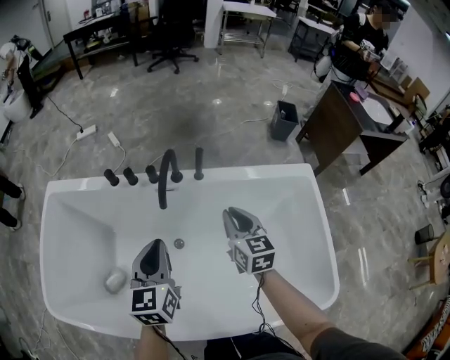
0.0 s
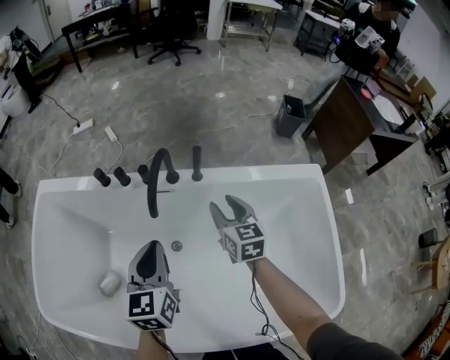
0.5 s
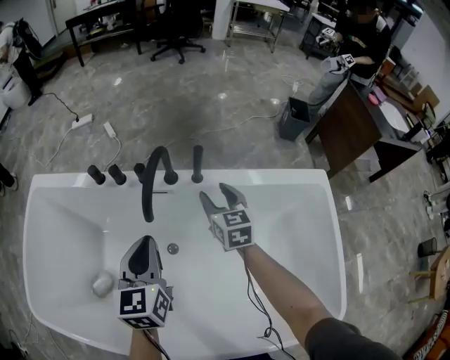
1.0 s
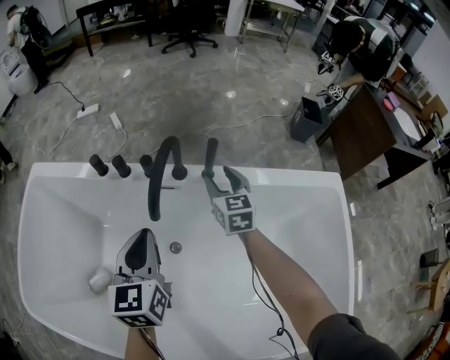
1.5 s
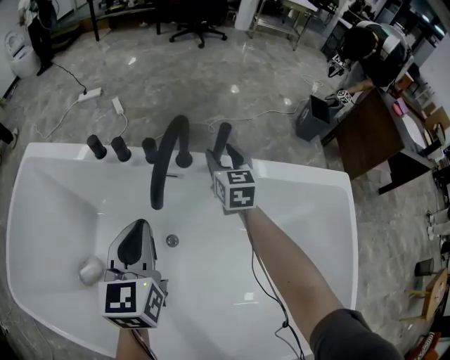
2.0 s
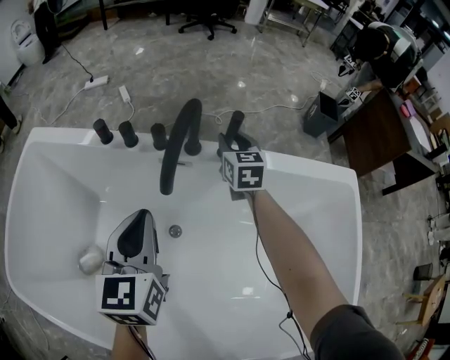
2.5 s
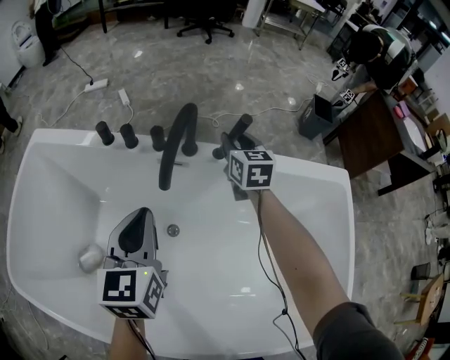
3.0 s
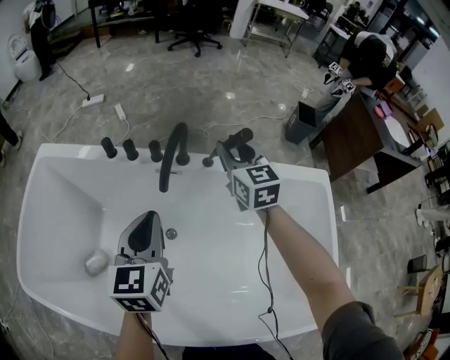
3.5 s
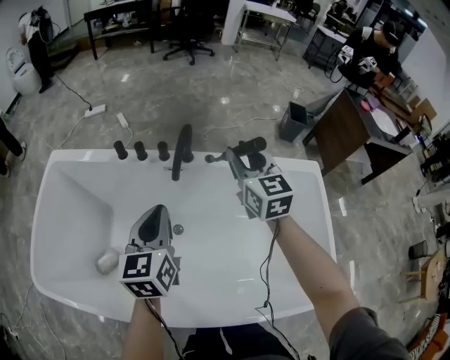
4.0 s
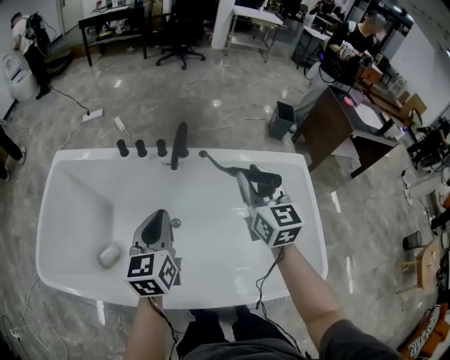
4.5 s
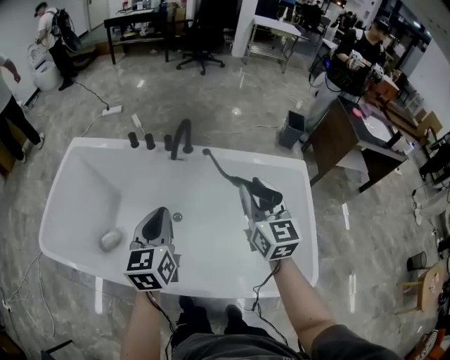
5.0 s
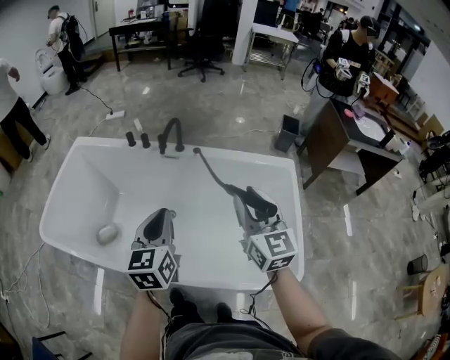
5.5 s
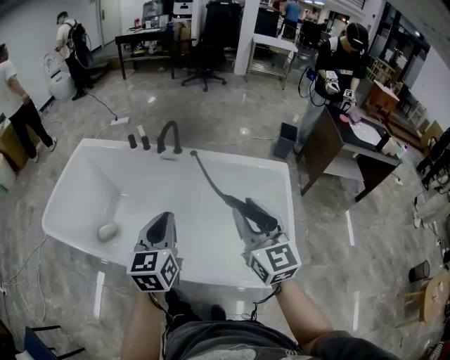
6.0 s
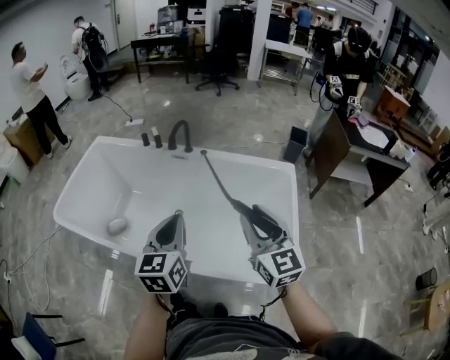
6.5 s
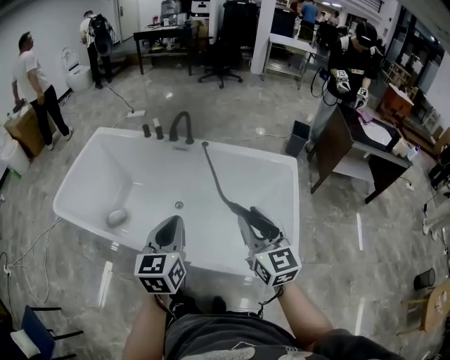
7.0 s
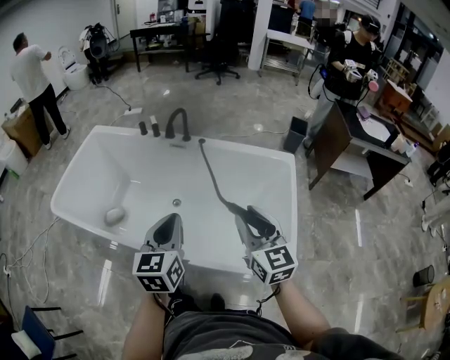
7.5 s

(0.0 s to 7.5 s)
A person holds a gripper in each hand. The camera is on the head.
0.0 s - 2.0 s: The right gripper goes some 30 cm forward and downward, and opens its fingers; the left gripper is displaced downward and forward by about 15 cm.
2.0 s - 4.0 s: The left gripper heads upward and backward, covering approximately 15 cm. The right gripper goes approximately 30 cm upward and backward, and closes its fingers.
4.0 s - 5.5 s: The right gripper shifts about 30 cm backward. The left gripper moves backward, to the right and upward, some 25 cm.
5.5 s - 7.5 s: The left gripper travels backward and to the right by approximately 15 cm, while the right gripper moves backward, some 15 cm.

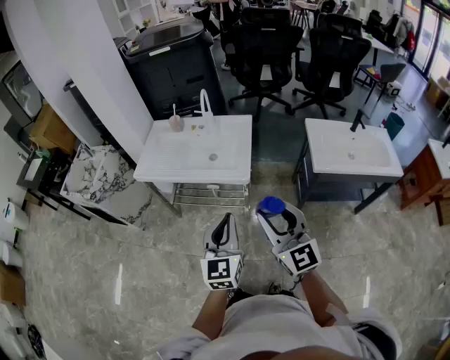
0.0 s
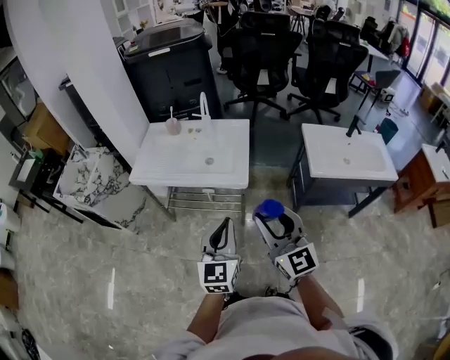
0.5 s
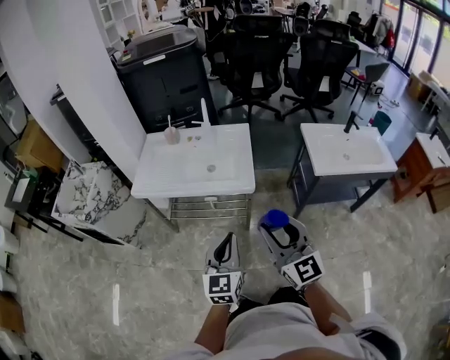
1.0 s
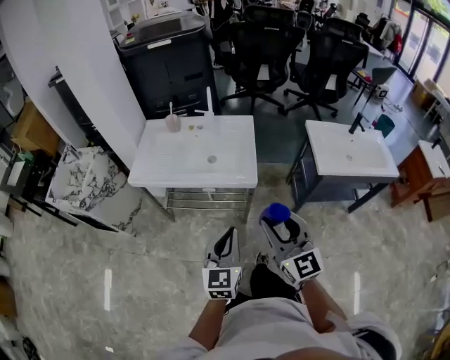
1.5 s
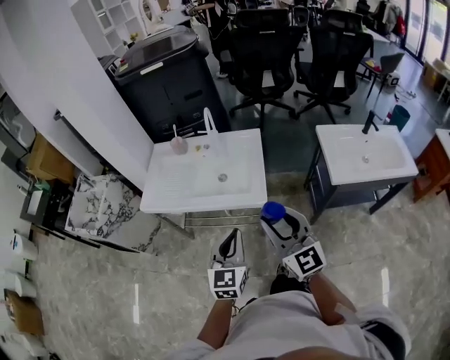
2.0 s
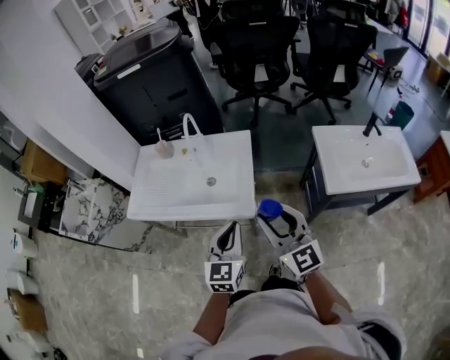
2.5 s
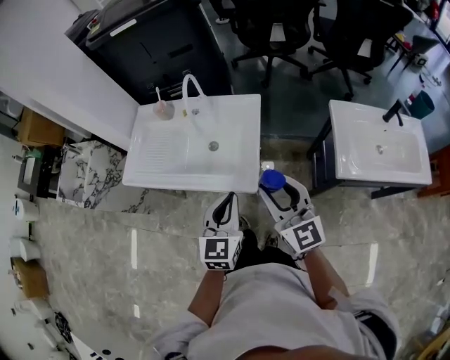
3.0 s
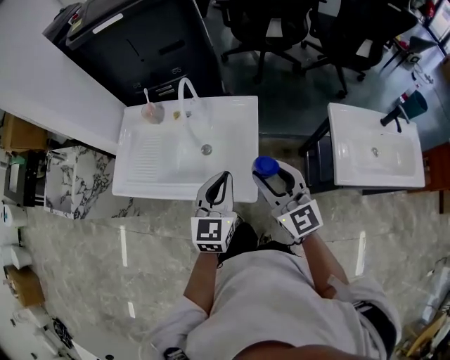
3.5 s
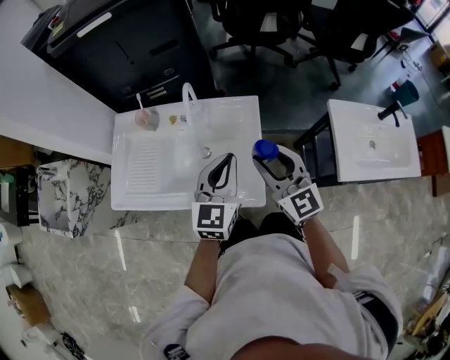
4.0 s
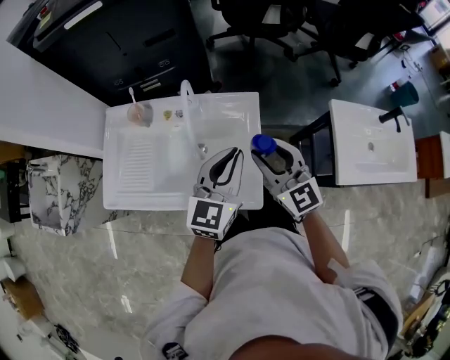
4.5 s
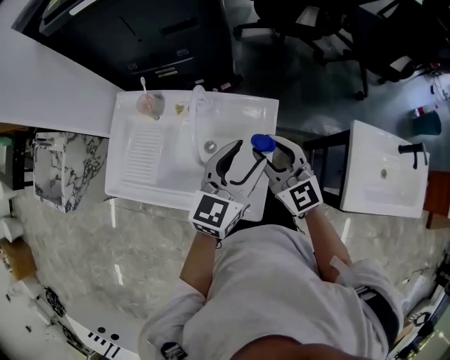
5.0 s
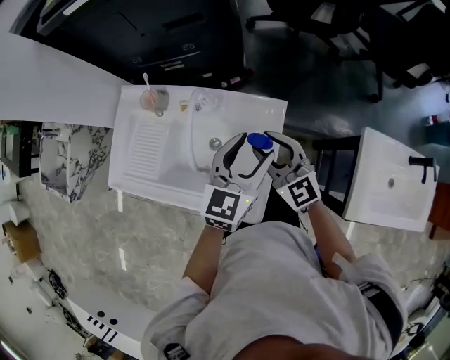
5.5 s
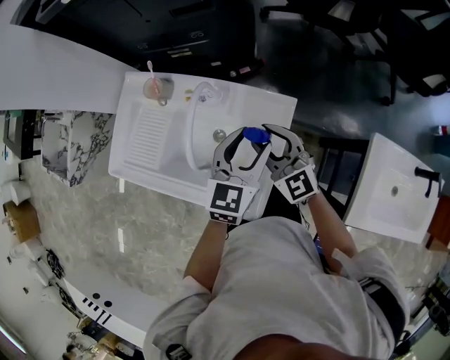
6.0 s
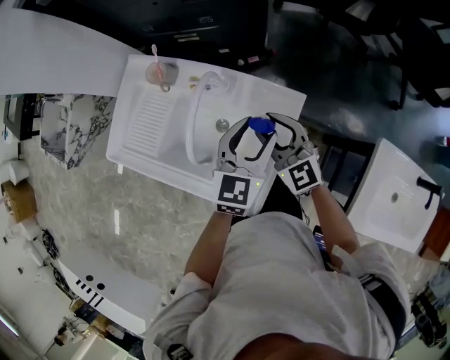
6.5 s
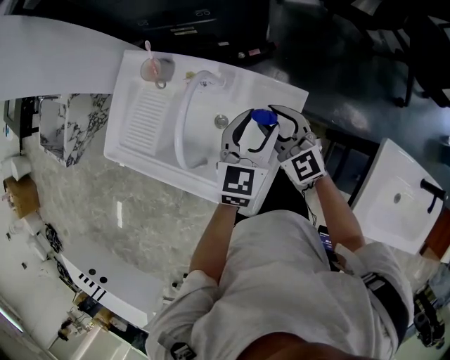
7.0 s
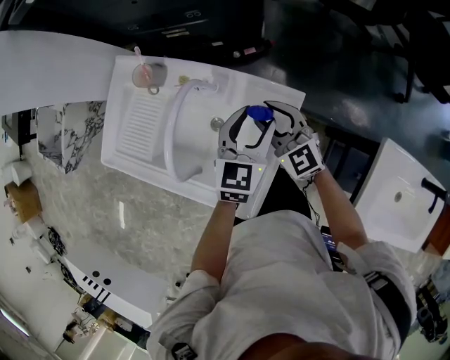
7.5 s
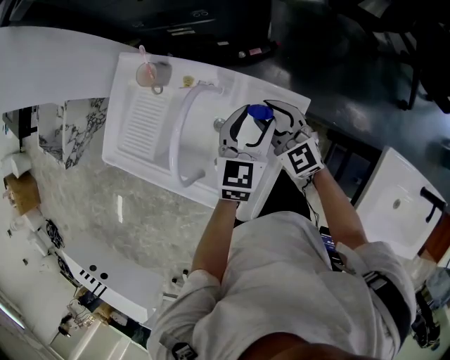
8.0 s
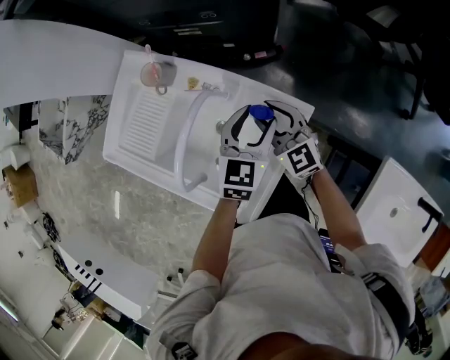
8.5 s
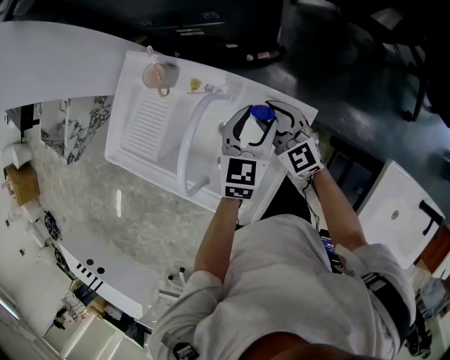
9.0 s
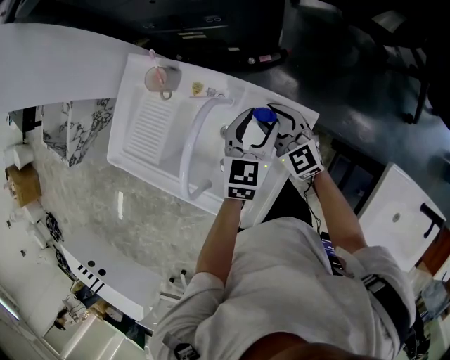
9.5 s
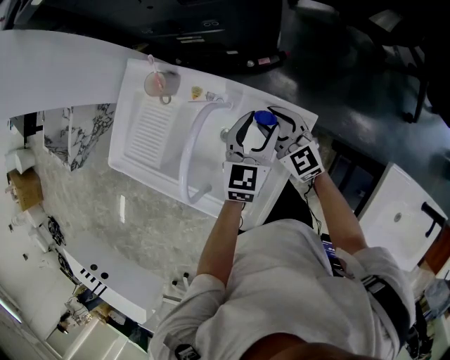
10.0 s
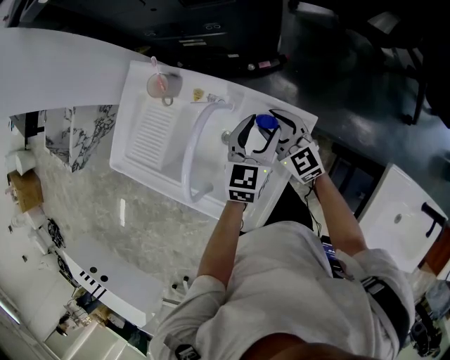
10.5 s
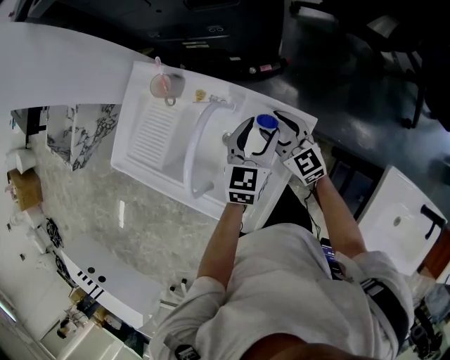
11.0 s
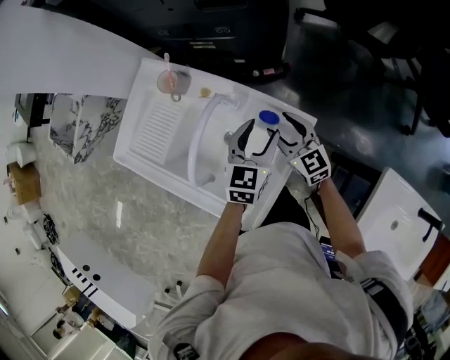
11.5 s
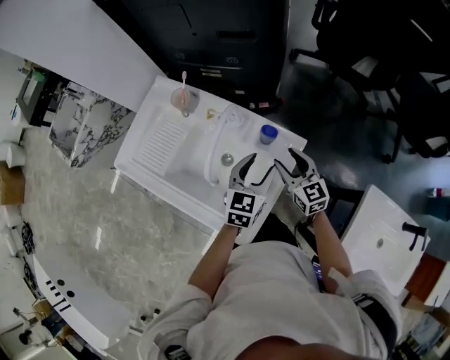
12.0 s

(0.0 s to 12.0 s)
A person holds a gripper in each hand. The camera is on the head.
0.0 s - 2.0 s: The right gripper goes some 15 cm forward and to the left, while the left gripper heads forward, downward and to the left, covering about 15 cm.
2.0 s - 4.0 s: Both grippers travel together forward, some 35 cm.
4.0 s - 6.0 s: The two grippers go roughly 20 cm forward and downward. The left gripper opens up. Meanwhile the right gripper swivels roughly 30 degrees.
6.0 s - 8.0 s: Both grippers travel together downward and forward, approximately 10 cm.
8.0 s - 10.0 s: The grippers make only small movements.
10.0 s - 12.0 s: Both grippers move backward, approximately 10 cm.

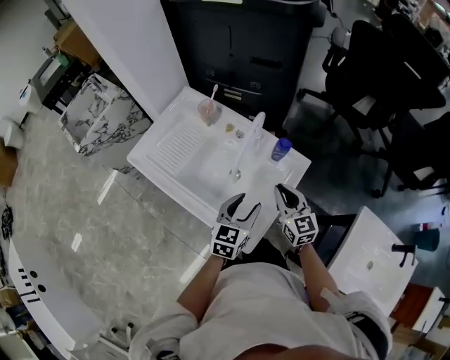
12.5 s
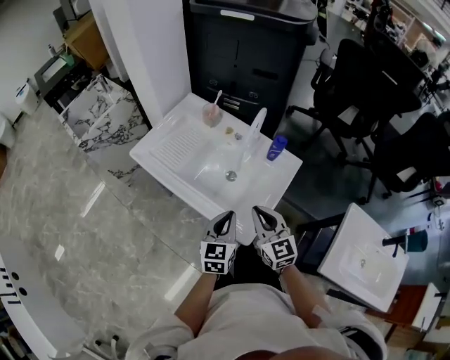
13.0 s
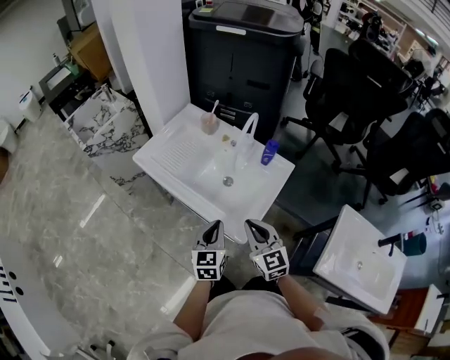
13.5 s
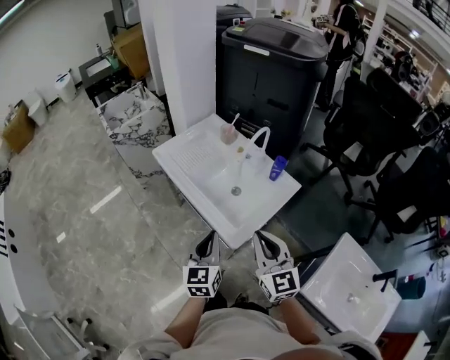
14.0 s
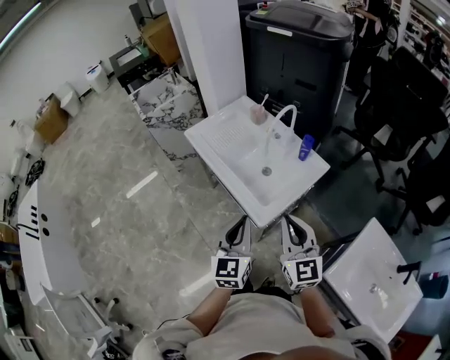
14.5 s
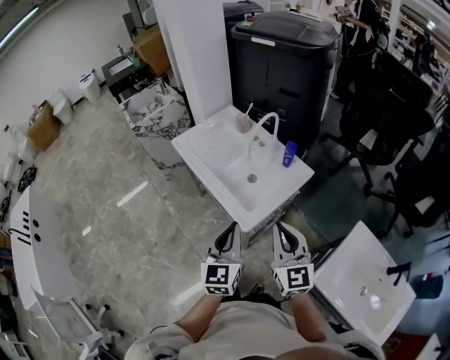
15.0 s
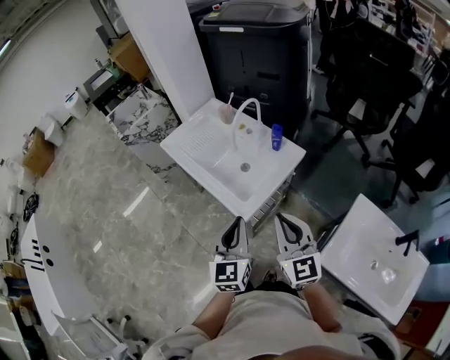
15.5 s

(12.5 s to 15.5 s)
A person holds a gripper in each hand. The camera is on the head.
12.5 s - 14.0 s: The right gripper travels backward and upward by roughly 30 cm. Meanwhile the left gripper heads backward, to the left and upward, covering roughly 25 cm, rotates about 30 degrees, and closes.
14.0 s - 15.5 s: The left gripper goes roughly 15 cm to the right, backward and upward, while the right gripper heads to the right and backward, covering roughly 10 cm.

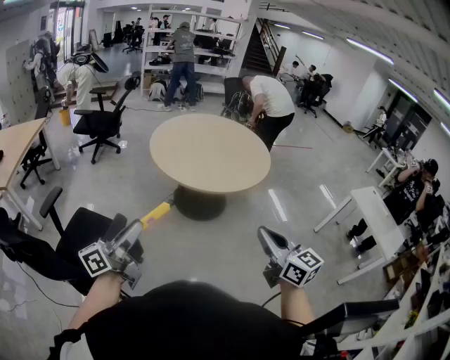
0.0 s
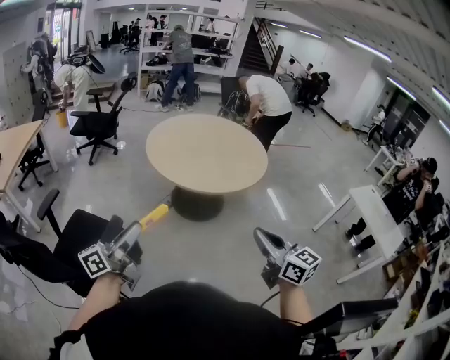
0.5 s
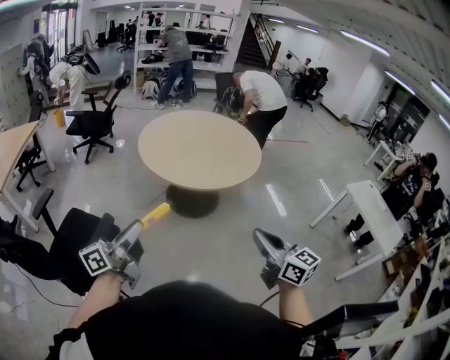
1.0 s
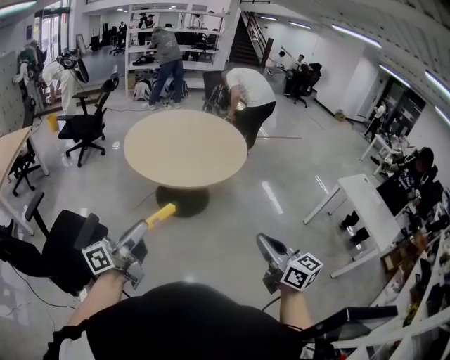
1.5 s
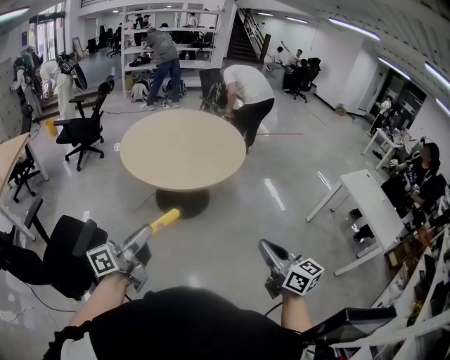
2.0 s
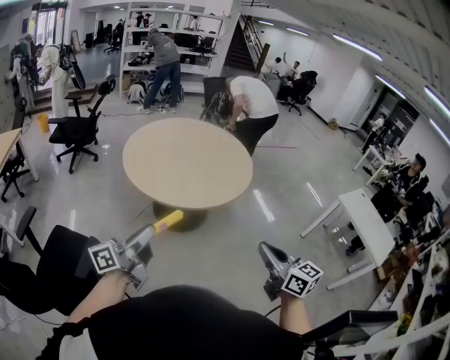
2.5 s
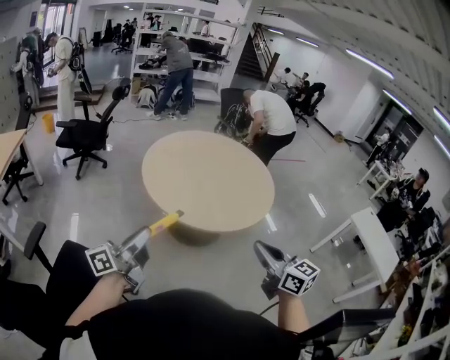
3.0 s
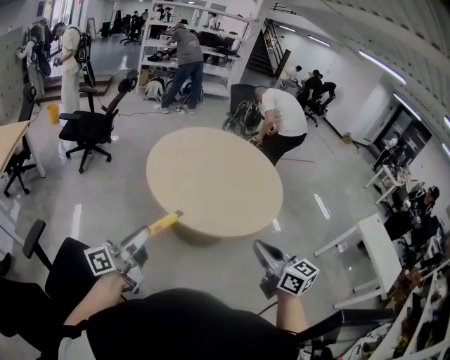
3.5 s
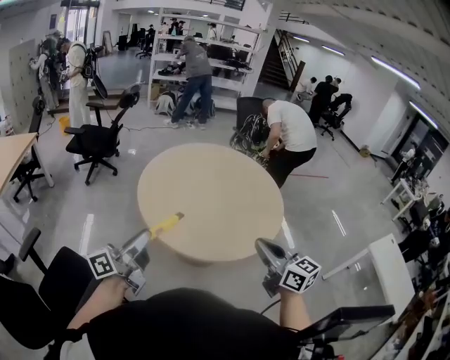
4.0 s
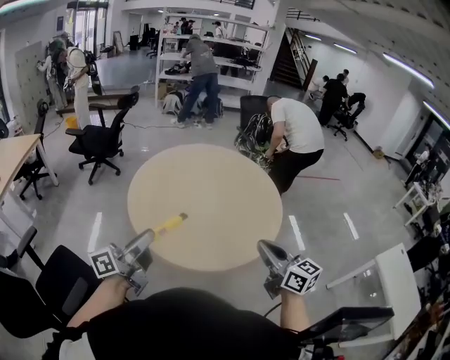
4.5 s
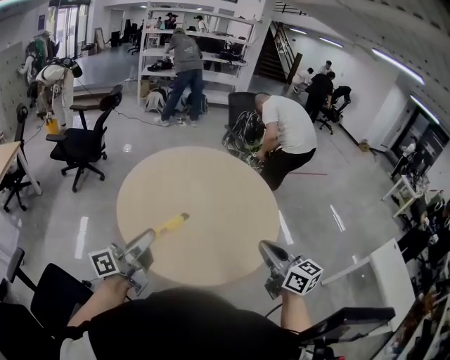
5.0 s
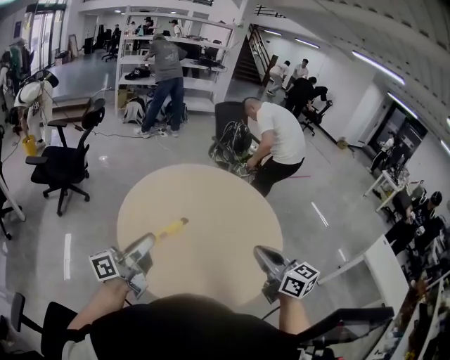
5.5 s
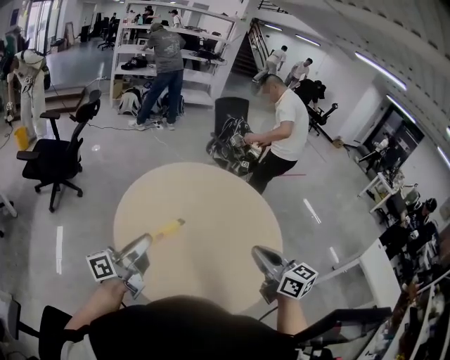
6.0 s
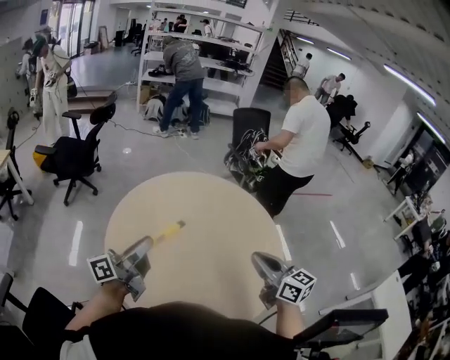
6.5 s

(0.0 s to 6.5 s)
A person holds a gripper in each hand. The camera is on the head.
0.0 s - 2.0 s: The grippers both shift to the right by some 20 cm.
2.0 s - 4.5 s: Both grippers are carried forward, approximately 40 cm.
4.5 s - 6.5 s: Both grippers move forward, roughly 30 cm.
